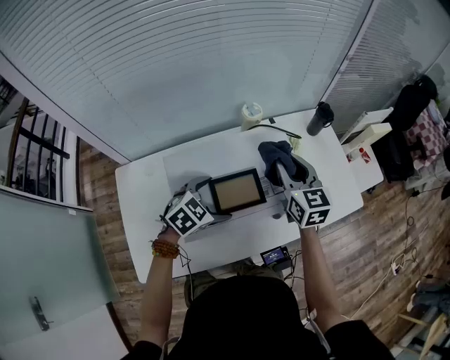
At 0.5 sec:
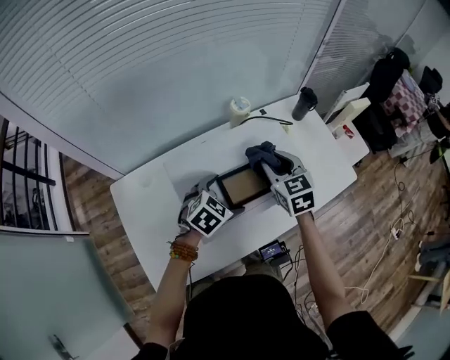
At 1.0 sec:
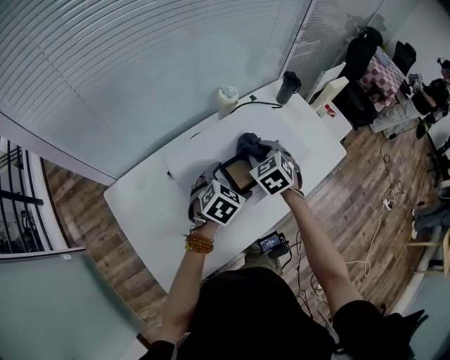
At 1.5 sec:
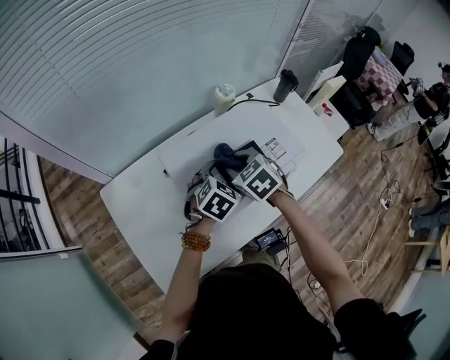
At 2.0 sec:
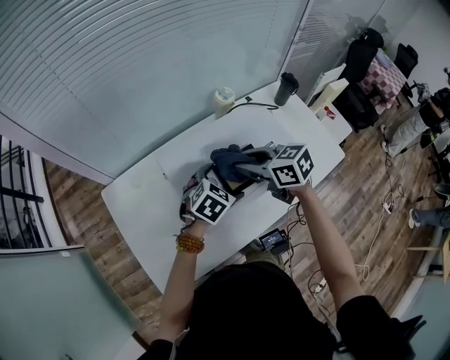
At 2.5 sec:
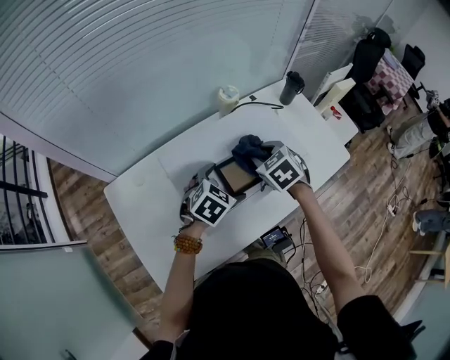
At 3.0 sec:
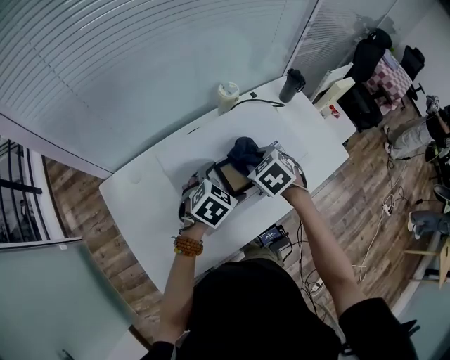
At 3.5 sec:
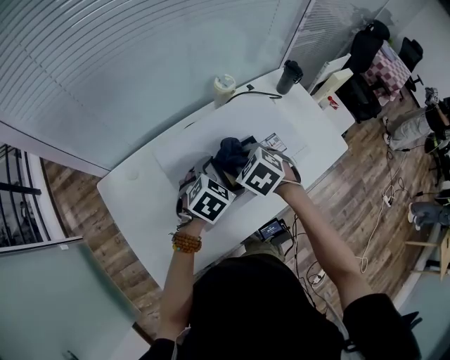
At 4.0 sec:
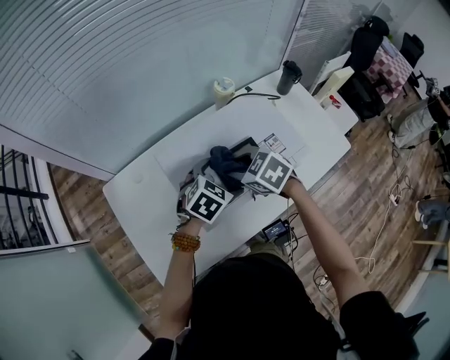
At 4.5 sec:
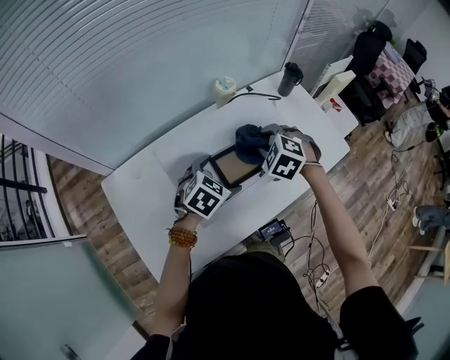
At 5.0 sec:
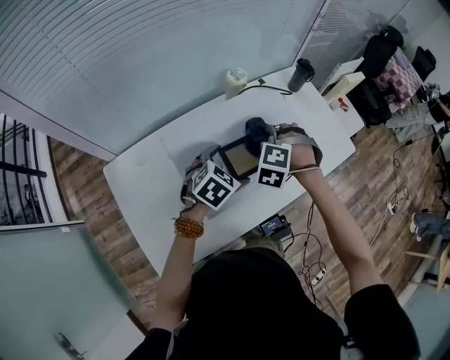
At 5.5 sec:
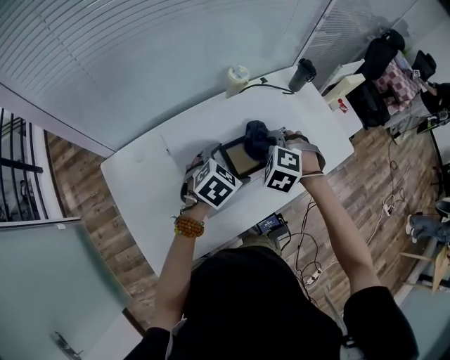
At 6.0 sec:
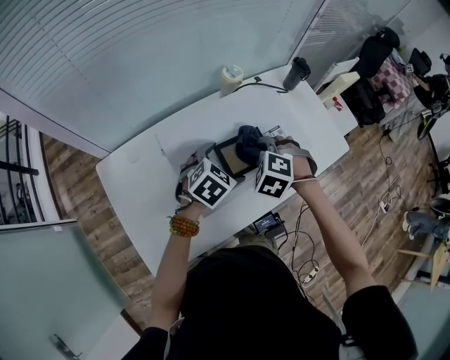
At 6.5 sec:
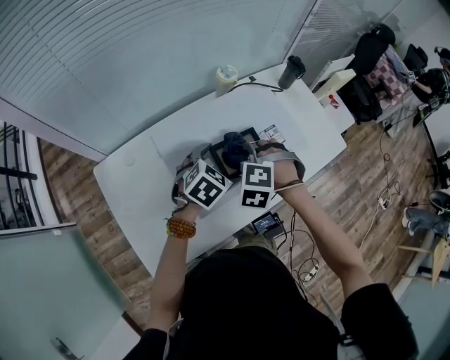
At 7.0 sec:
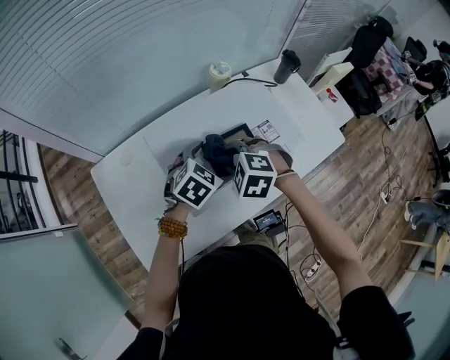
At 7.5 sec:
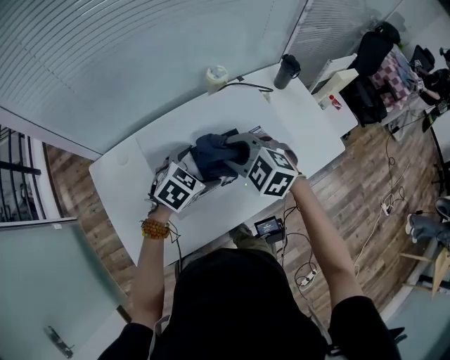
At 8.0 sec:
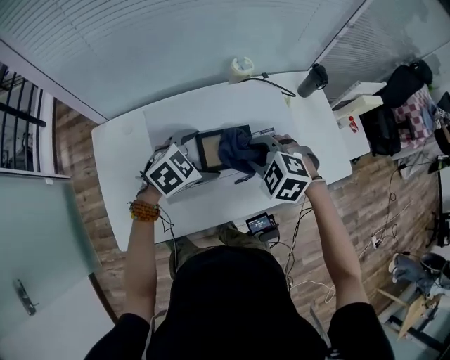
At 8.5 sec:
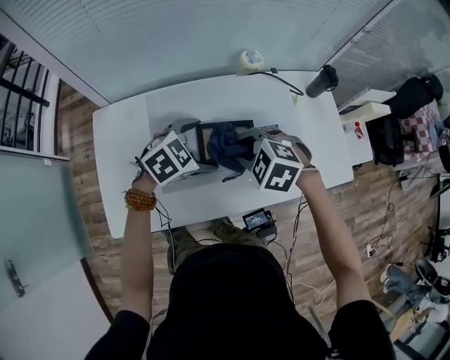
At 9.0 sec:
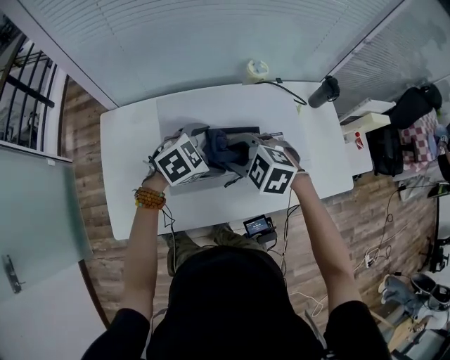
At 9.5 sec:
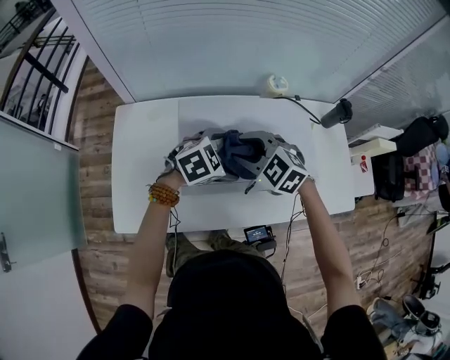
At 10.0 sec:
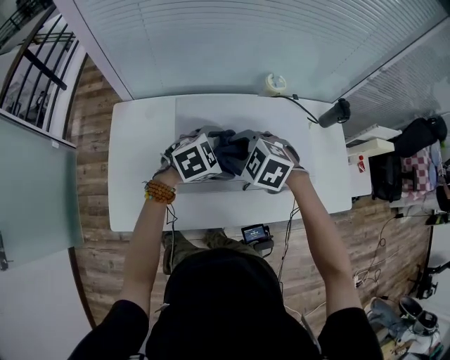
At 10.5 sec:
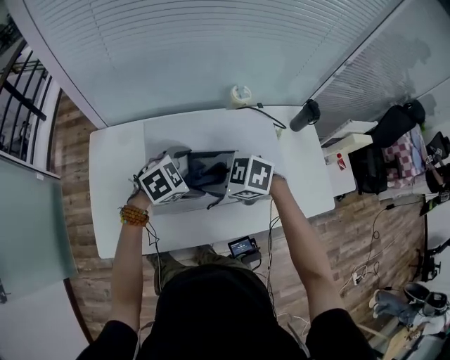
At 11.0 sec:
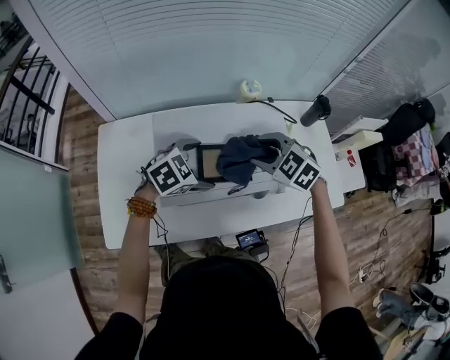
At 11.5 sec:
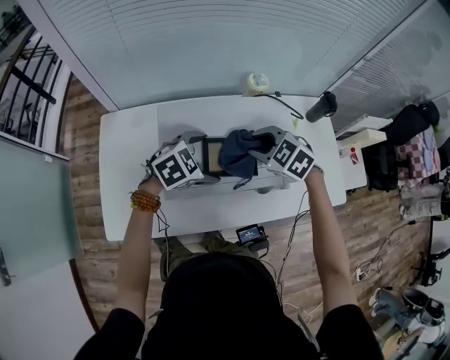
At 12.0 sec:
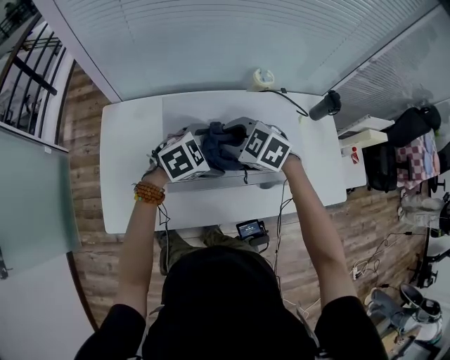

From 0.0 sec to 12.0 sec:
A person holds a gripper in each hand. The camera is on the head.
From 0.0 sec to 2.0 sec: The right gripper is displaced to the left and backward by about 15 cm, and swivels about 40 degrees.
From 2.0 sec to 4.0 sec: The right gripper moves about 5 cm to the right and comes back, and swivels some 30 degrees.
From 4.0 sec to 6.0 sec: The right gripper changes its angle by about 40 degrees.
From 6.0 sec to 8.0 sec: The right gripper rotates roughly 30 degrees.
From 8.0 sec to 10.0 sec: The right gripper shifts by roughly 10 cm.

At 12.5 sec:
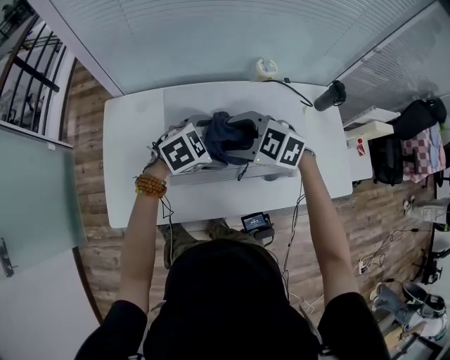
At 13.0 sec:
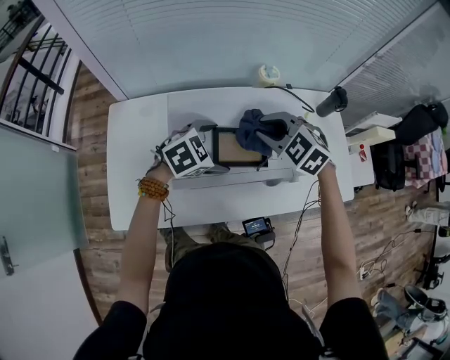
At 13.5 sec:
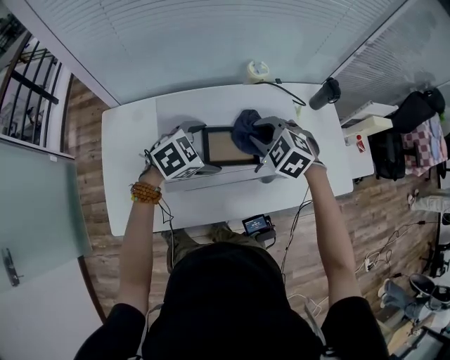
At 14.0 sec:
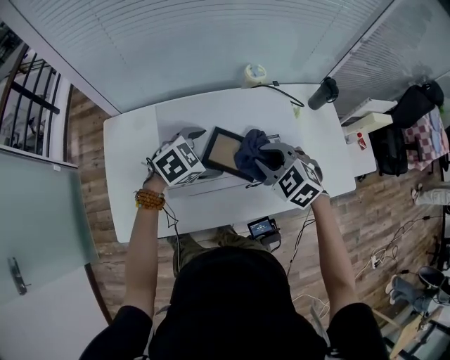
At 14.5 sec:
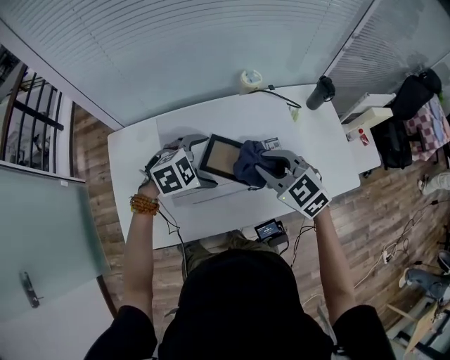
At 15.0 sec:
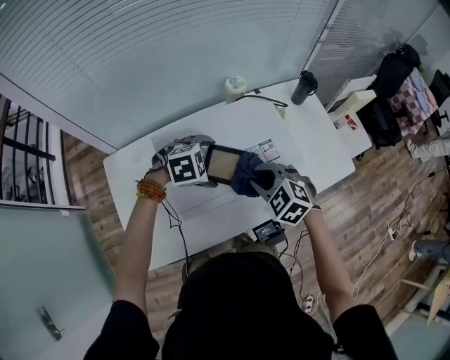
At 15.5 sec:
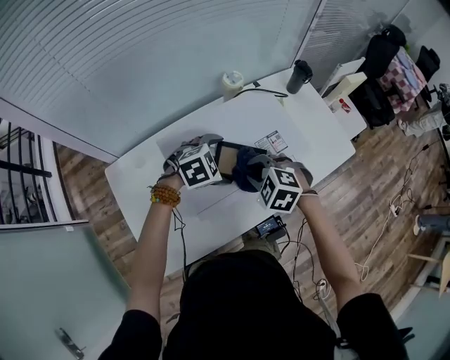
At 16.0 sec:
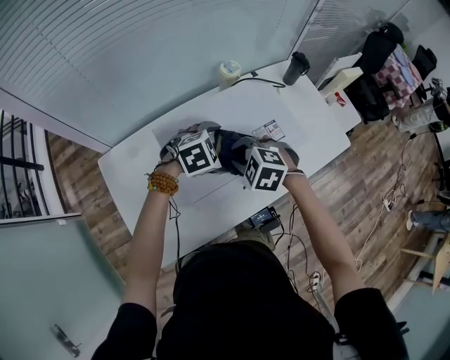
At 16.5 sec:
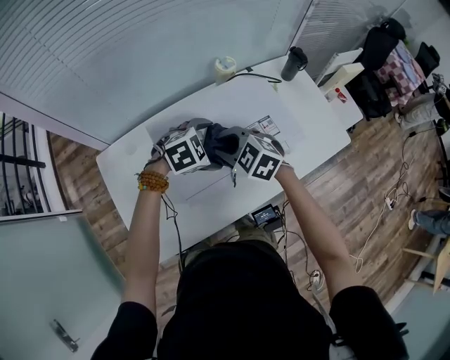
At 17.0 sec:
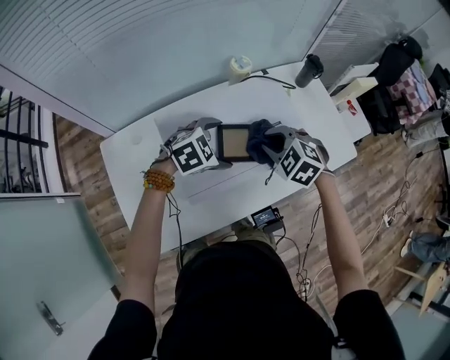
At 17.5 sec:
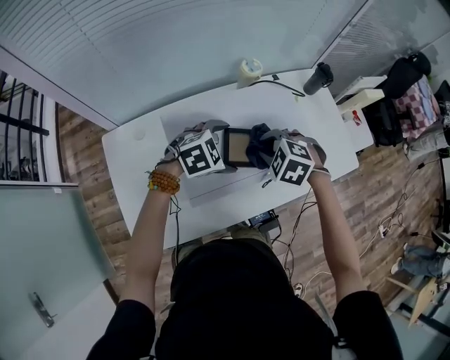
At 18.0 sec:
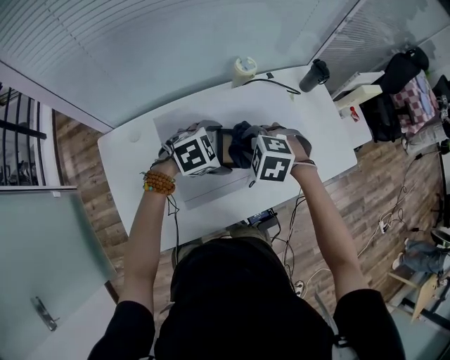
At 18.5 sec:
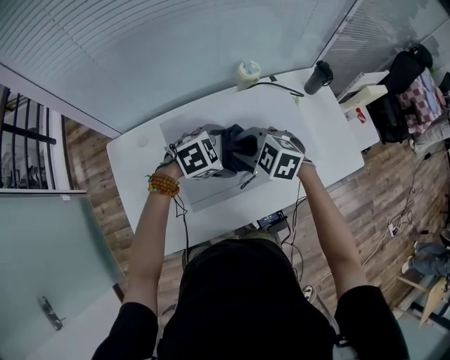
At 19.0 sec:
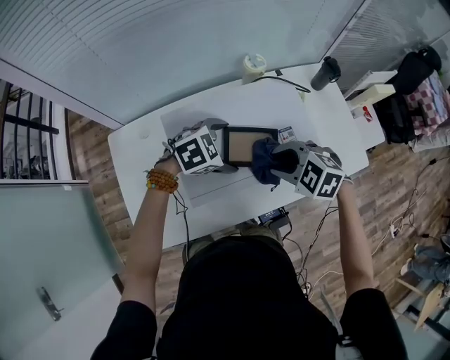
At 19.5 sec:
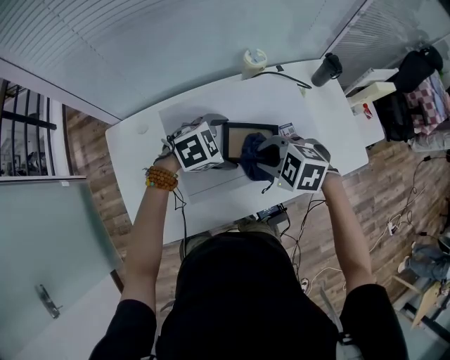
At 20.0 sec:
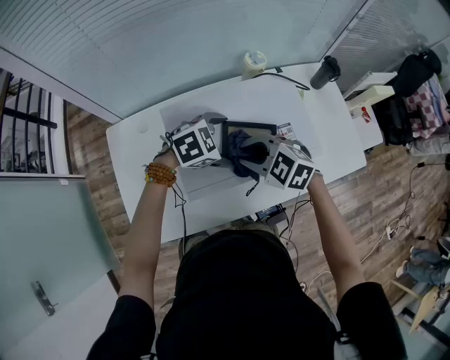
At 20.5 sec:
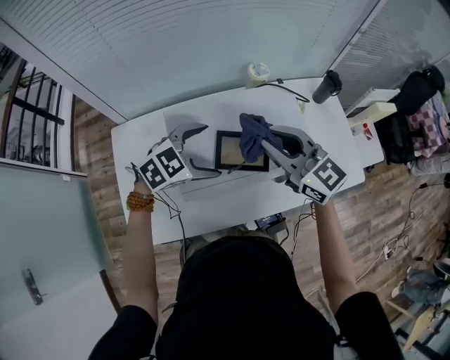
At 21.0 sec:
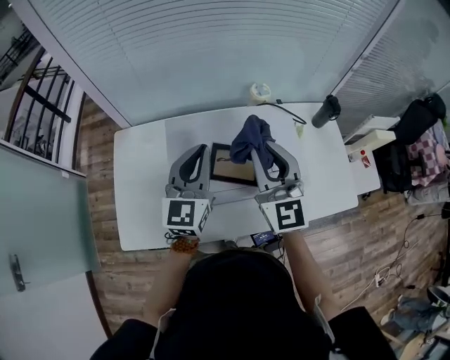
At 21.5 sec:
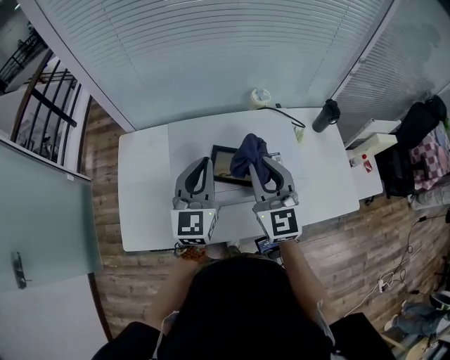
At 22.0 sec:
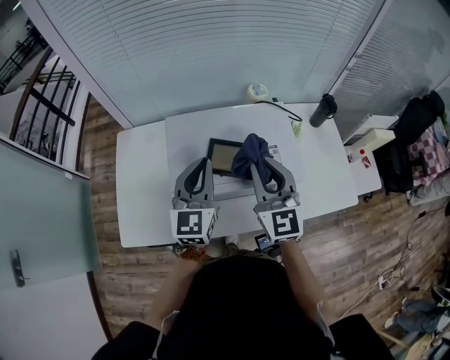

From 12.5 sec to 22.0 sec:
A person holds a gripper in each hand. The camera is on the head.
From 12.5 sec to 14.5 sec: The right gripper changes place by roughly 10 cm, rotates about 30 degrees, and closes.
From 14.5 sec to 16.5 sec: The right gripper ends up approximately 10 cm from where it was.
From 16.5 sec to 18.0 sec: The right gripper changes its angle by approximately 30 degrees.
From 18.0 sec to 20.0 sec: The right gripper changes its angle by some 30 degrees.
From 20.0 sec to 22.0 sec: The grippers both shift upward by about 15 cm. The right gripper tilts its fingers roughly 40 degrees upward. Meanwhile the left gripper angles its fingers upward, by some 50 degrees, and closes up.

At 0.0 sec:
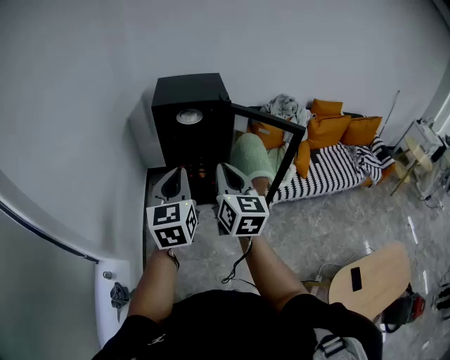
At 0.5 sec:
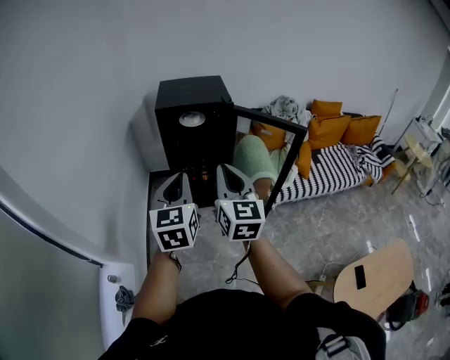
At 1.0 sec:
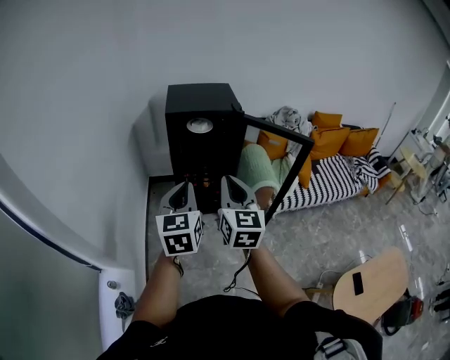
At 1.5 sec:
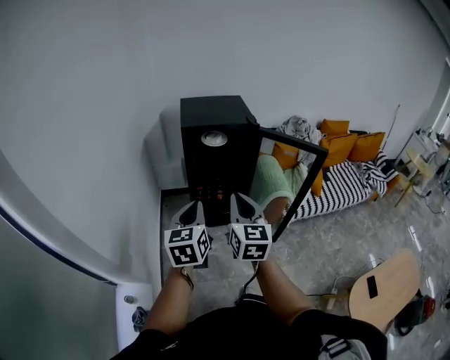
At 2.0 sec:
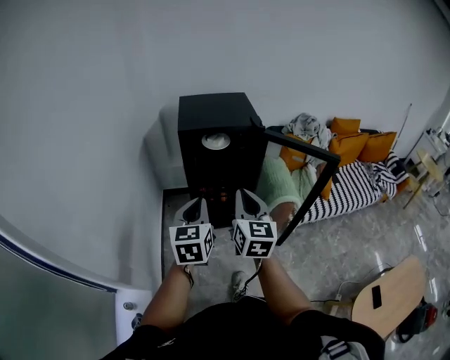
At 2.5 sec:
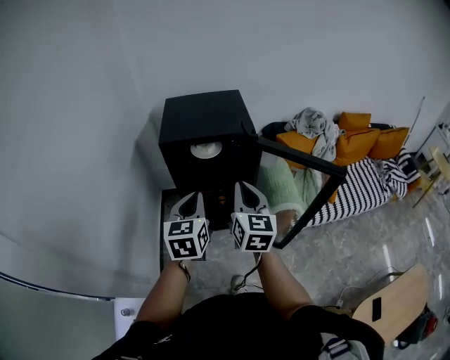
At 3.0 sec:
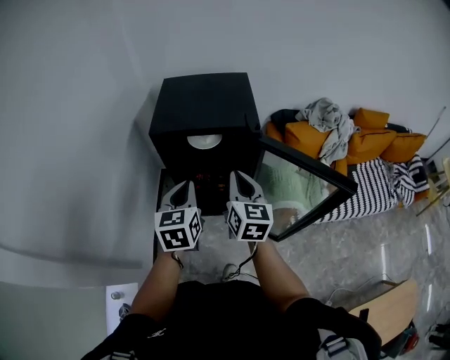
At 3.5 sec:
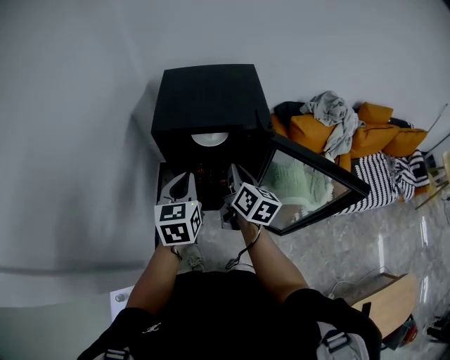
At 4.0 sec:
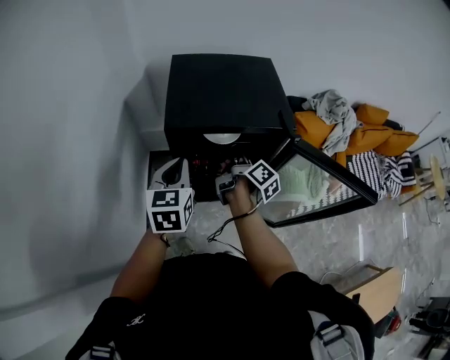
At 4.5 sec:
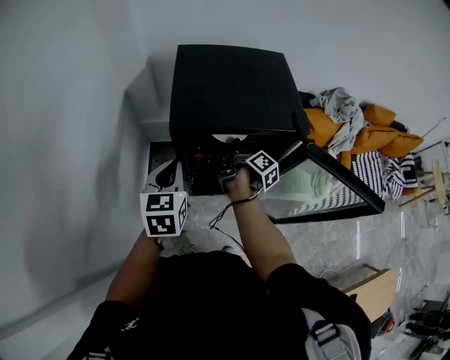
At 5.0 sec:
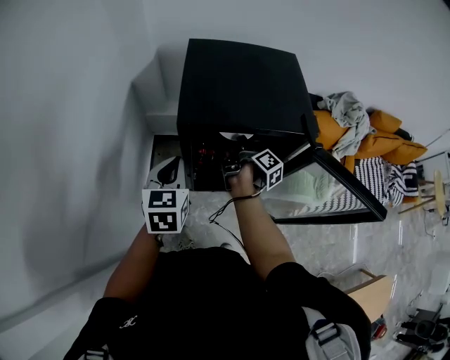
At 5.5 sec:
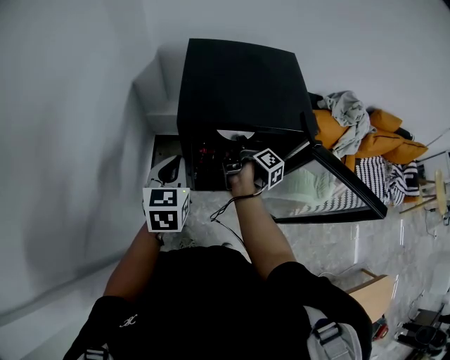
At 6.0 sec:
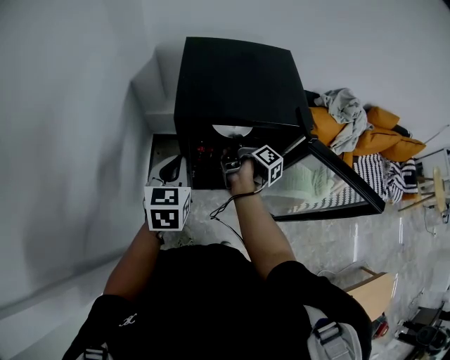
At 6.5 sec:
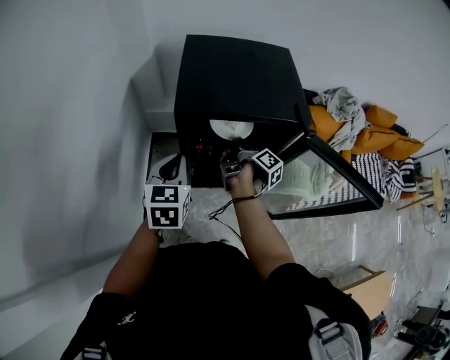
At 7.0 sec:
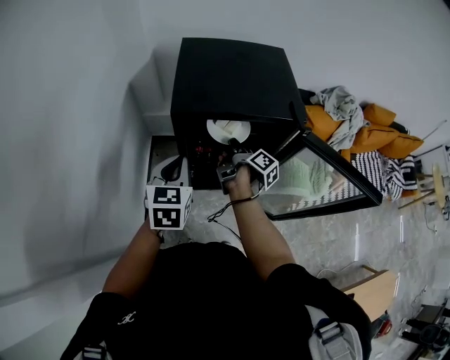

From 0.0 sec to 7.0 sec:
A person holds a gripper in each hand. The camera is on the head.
From 0.0 sec to 2.0 sec: The right gripper goes about 15 cm forward and to the left. The left gripper goes roughly 15 cm forward, to the left and downward.
From 2.0 sec to 3.5 sec: The grippers both shift forward by some 25 cm. The right gripper swivels about 30 degrees.
From 3.5 sec to 5.0 sec: The right gripper moves forward and downward, some 20 cm, and rolls clockwise, seen from behind, by about 50 degrees. Meanwhile the left gripper is displaced to the left, forward and downward by approximately 15 cm.
From 5.0 sec to 7.0 sec: The right gripper changes place by approximately 5 cm.
